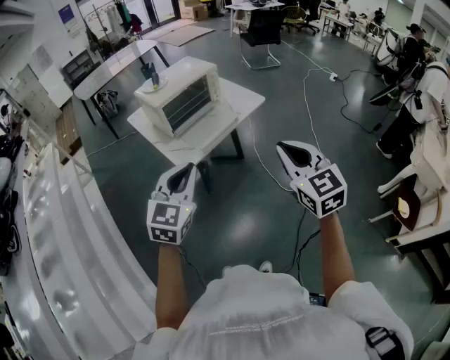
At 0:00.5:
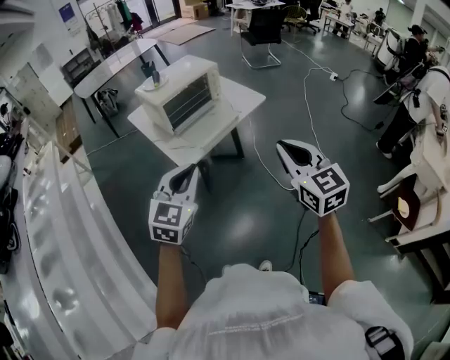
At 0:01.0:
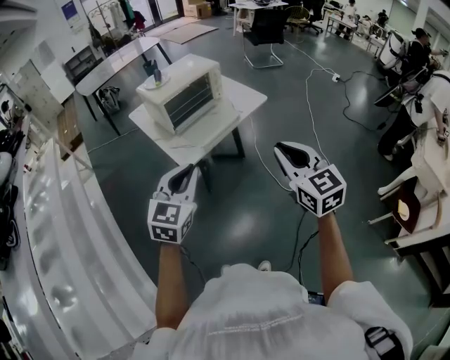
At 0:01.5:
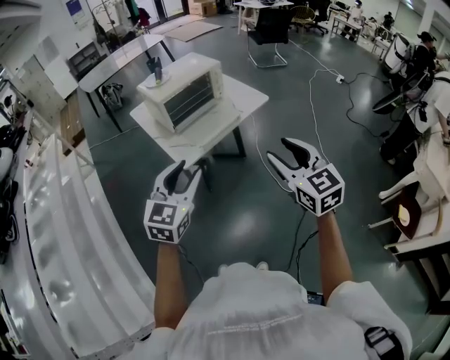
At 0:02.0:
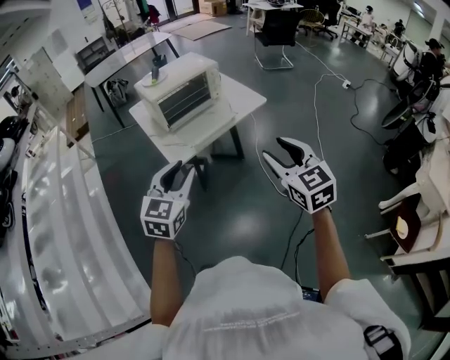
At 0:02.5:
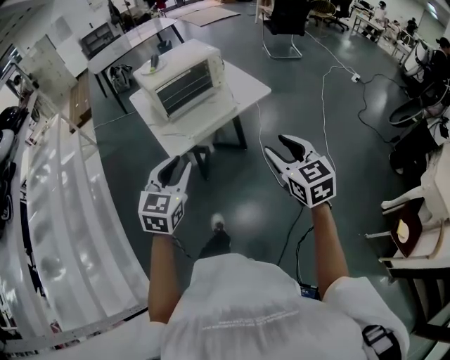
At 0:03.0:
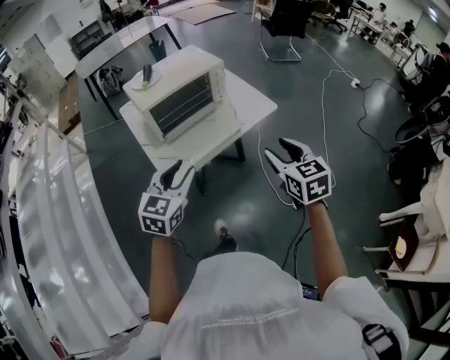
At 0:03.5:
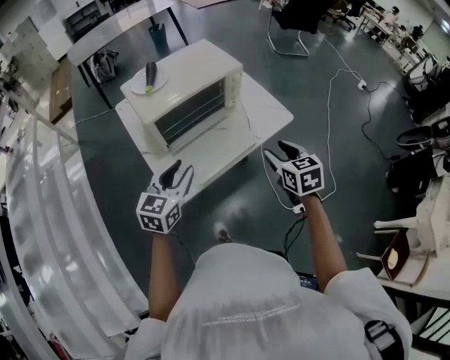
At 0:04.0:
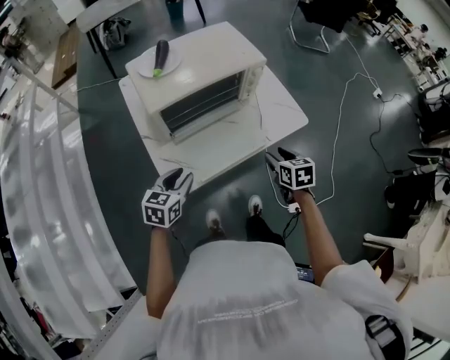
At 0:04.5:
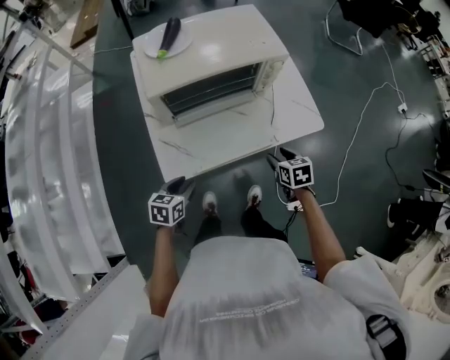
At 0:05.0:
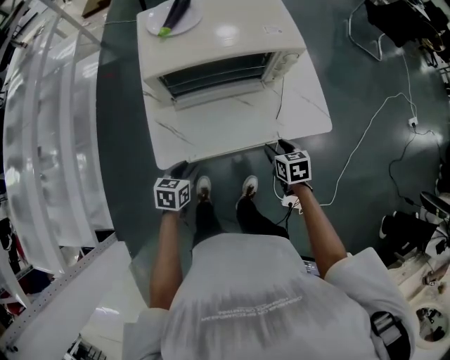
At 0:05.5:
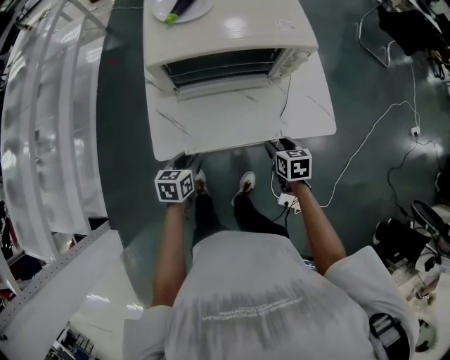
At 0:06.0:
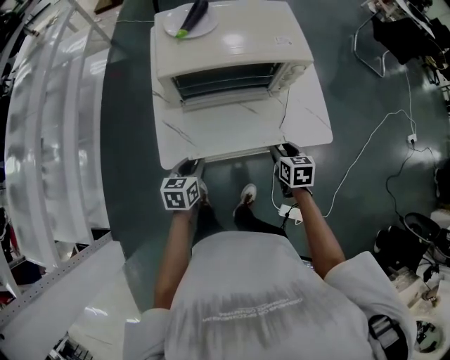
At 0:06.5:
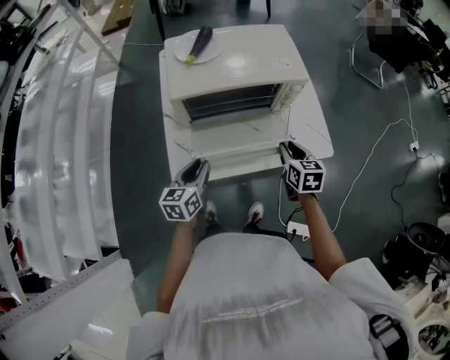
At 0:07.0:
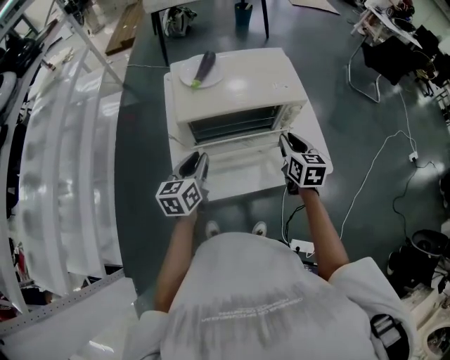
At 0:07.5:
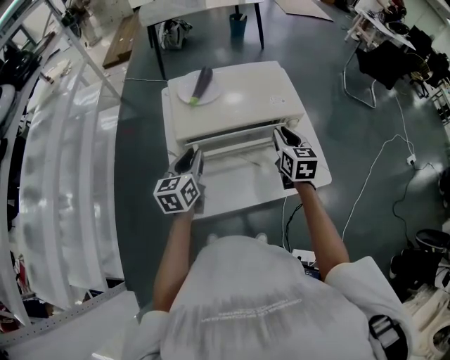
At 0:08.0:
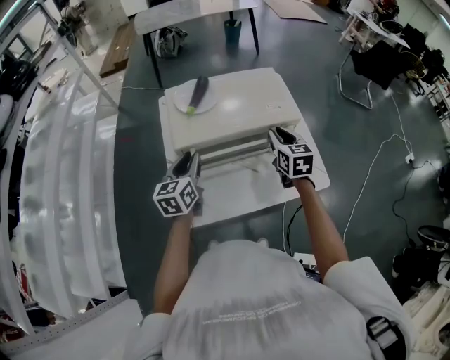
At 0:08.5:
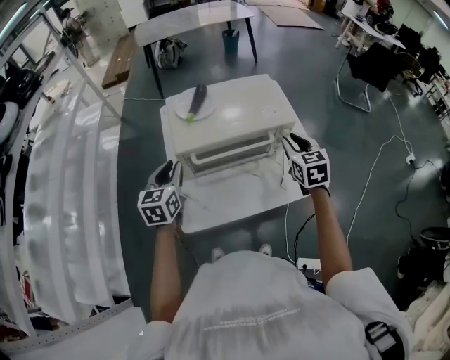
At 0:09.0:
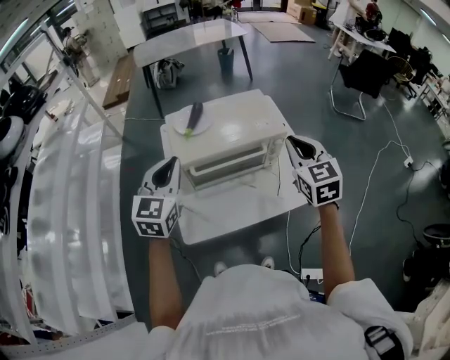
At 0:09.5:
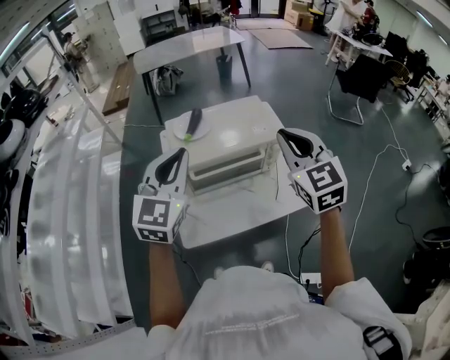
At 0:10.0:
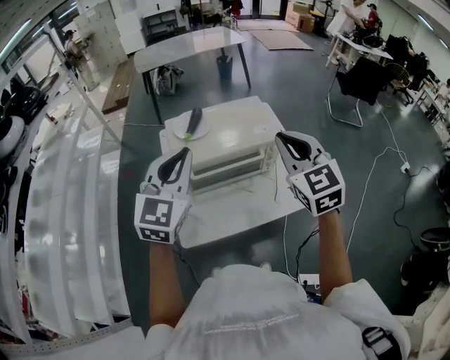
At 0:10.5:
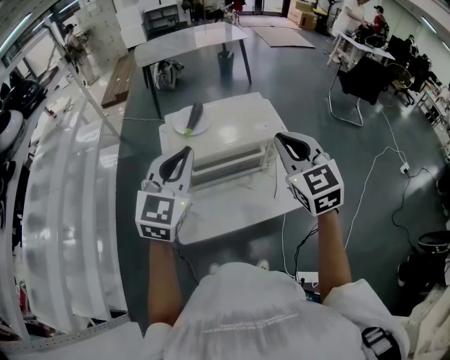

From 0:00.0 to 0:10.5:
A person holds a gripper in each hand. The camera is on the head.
From 0:00.0 to 0:02.0: The right gripper moves to the right, some 5 cm, and opens up. Meanwhile the left gripper moves roughly 5 cm, and opens up.
From 0:02.0 to 0:04.0: The two grippers go approximately 40 cm forward and downward. The left gripper rotates approximately 30 degrees. The right gripper tilts its fingers roughly 30 degrees downward.
From 0:04.0 to 0:06.5: The left gripper travels downward and back again, approximately 15 cm each way, and turns by approximately 30 degrees; the right gripper moves forward, some 10 cm, reaches roughly 10 cm downward, then returns, and closes.
From 0:06.5 to 0:08.5: The left gripper travels upward, forward and to the left by approximately 20 cm. The right gripper is displaced upward and forward by about 20 cm.
From 0:08.5 to 0:10.5: The left gripper heads upward and to the right, covering about 20 cm, and turns by roughly 30 degrees, while the right gripper moves upward and backward, about 20 cm, rotates about 20 degrees, and closes its fingers.

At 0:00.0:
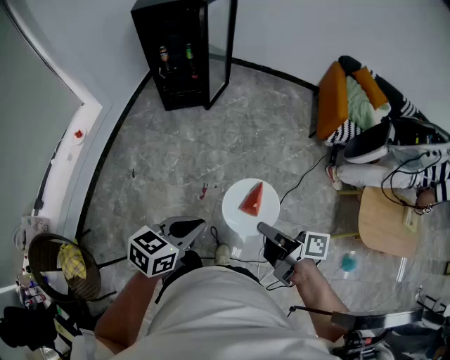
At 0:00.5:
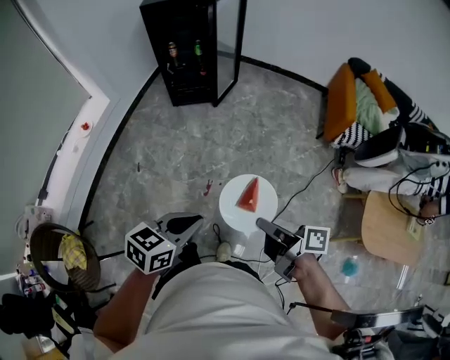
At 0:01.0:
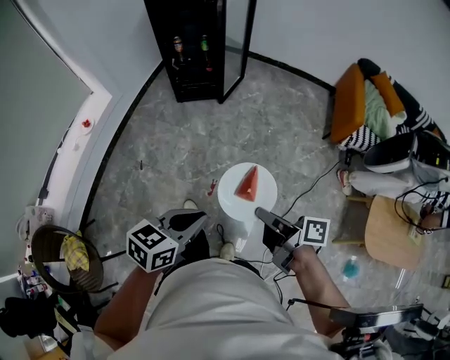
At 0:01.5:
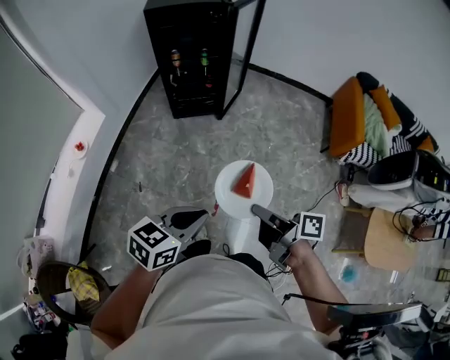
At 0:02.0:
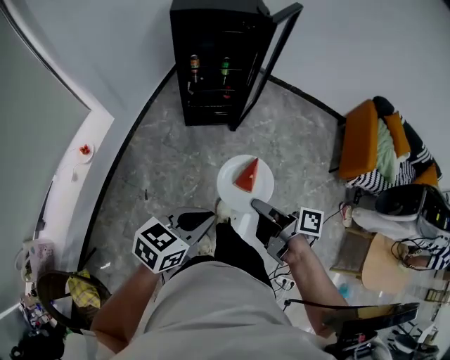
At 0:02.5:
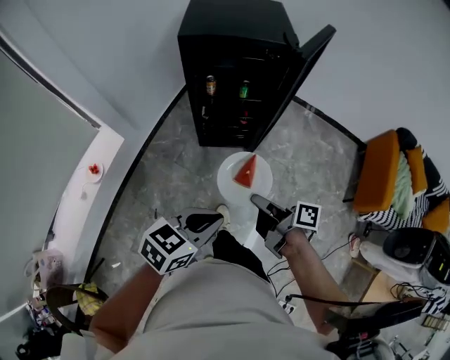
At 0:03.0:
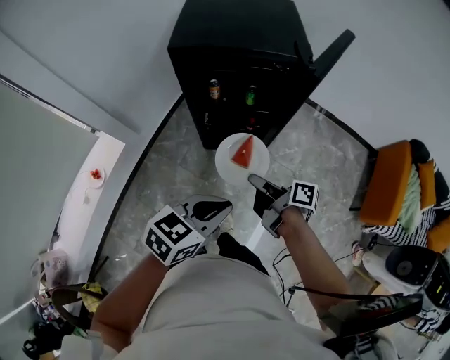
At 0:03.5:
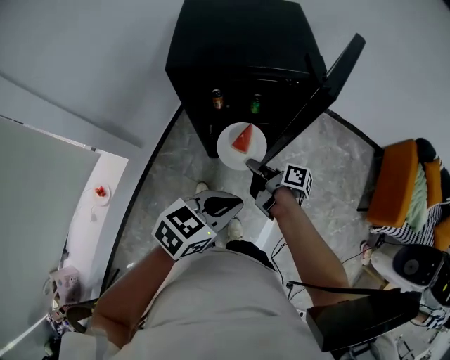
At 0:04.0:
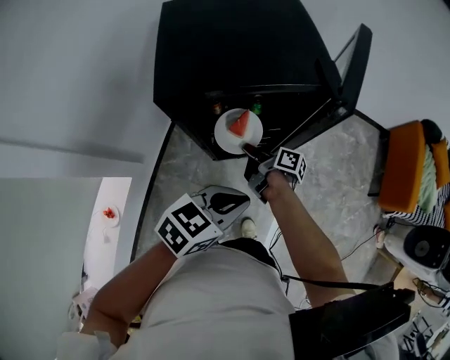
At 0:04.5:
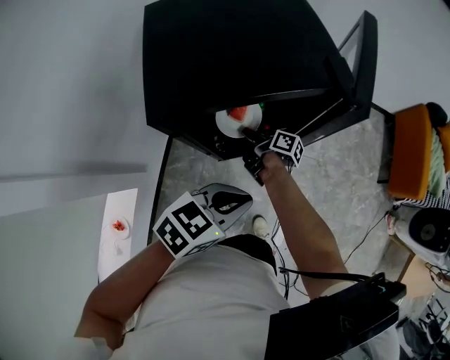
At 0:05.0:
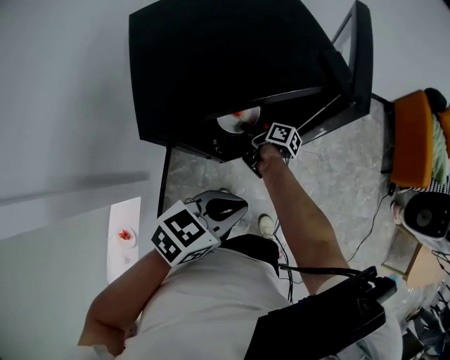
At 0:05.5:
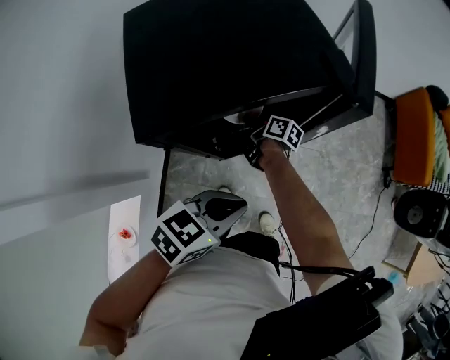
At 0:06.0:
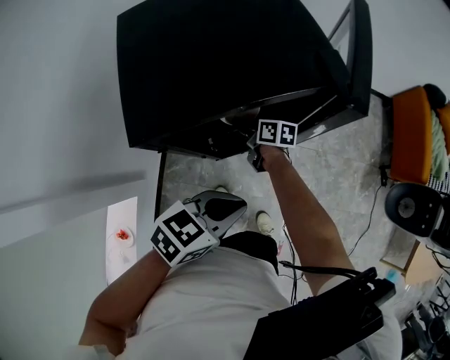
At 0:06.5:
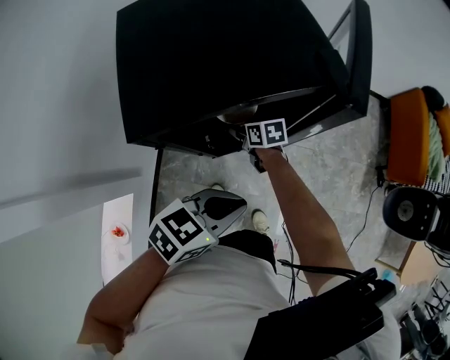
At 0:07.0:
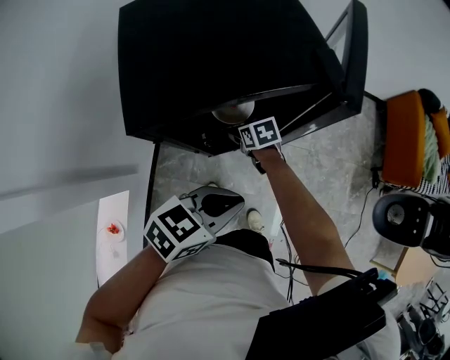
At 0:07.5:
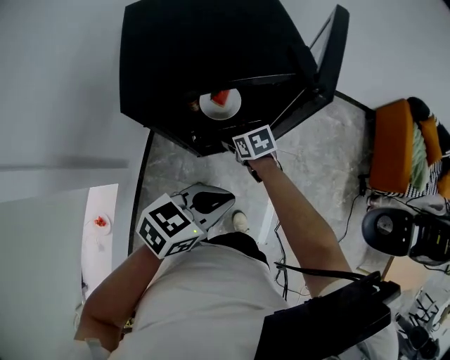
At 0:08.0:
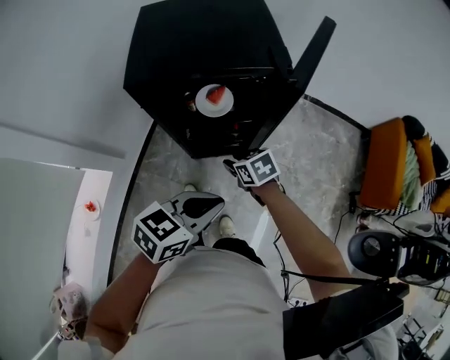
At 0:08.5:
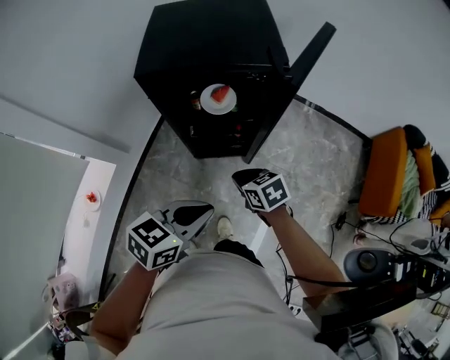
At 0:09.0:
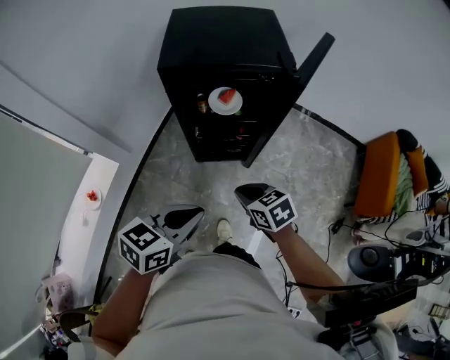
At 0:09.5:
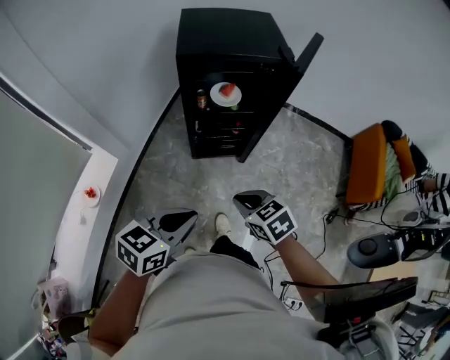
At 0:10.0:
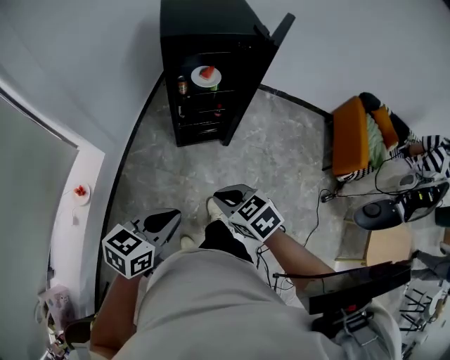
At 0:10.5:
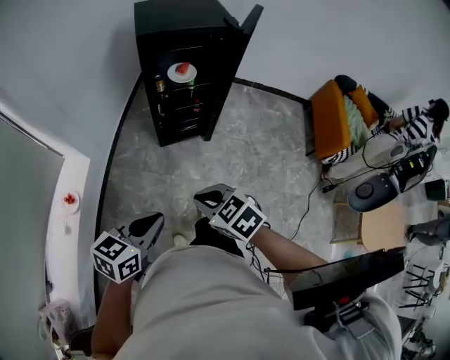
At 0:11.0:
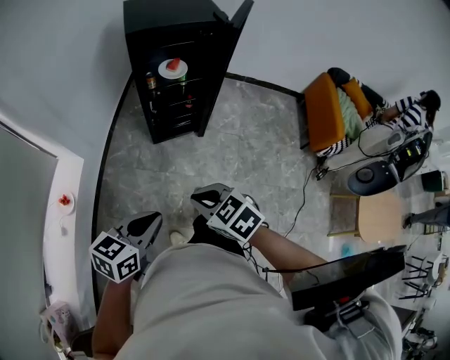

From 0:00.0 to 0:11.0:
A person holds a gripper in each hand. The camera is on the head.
From 0:00.0 to 0:02.0: The grippers both shift forward and to the left by about 40 cm.
From 0:02.0 to 0:03.5: The two grippers go about 40 cm forward.
From 0:03.5 to 0:05.5: The right gripper shifts some 25 cm forward, downward and to the left, and turns by approximately 20 degrees; the left gripper moves forward and to the left, approximately 15 cm.
From 0:05.5 to 0:07.5: The left gripper ends up some 5 cm from where it was, while the right gripper changes place by roughly 10 cm, twists some 60 degrees counterclockwise, seen from behind, and opens up.
From 0:07.5 to 0:09.0: The right gripper heads backward and upward, covering approximately 30 cm, and closes its fingers. Meanwhile the left gripper shifts approximately 15 cm backward, and turns by about 20 degrees.
From 0:09.0 to 0:11.0: The grippers both shift backward and to the left by approximately 30 cm.

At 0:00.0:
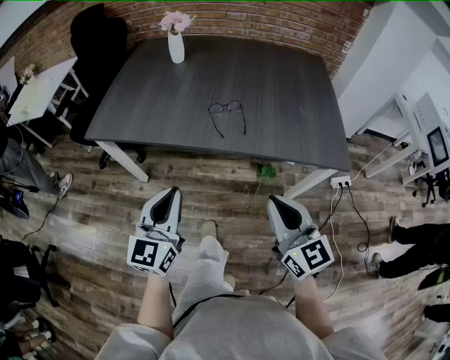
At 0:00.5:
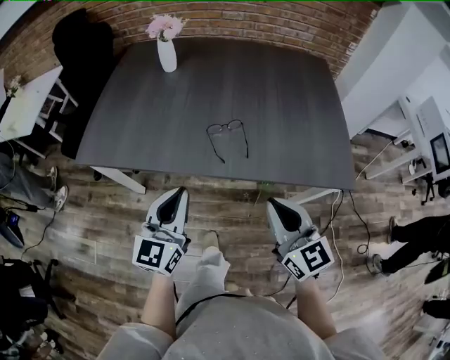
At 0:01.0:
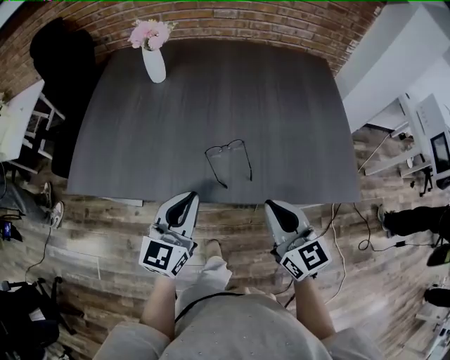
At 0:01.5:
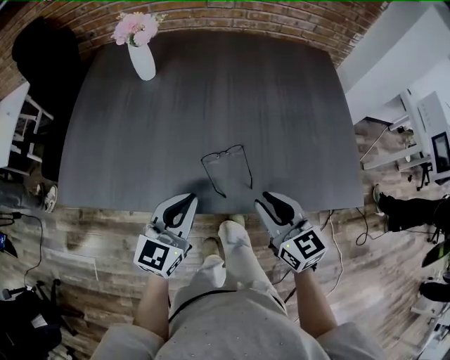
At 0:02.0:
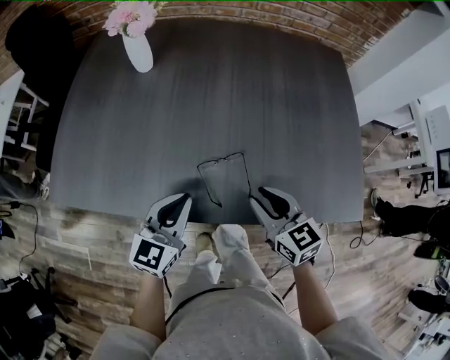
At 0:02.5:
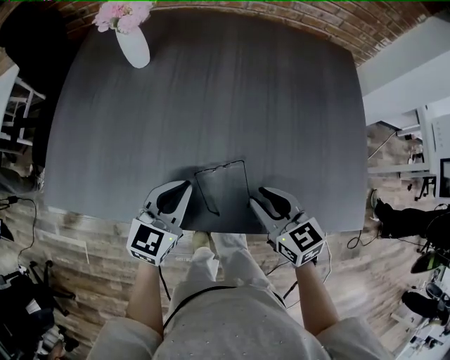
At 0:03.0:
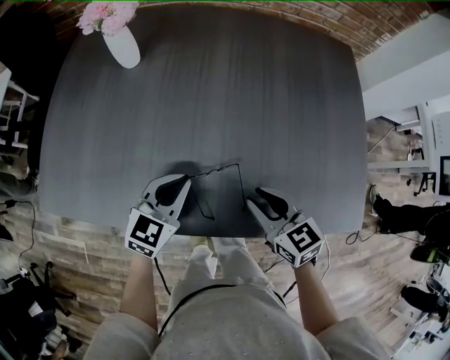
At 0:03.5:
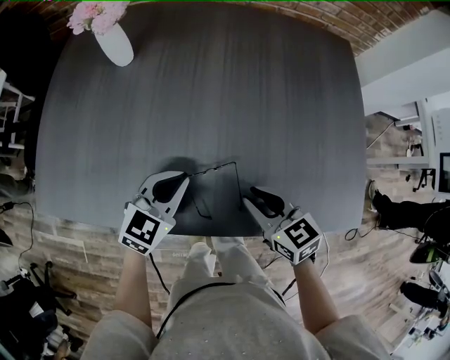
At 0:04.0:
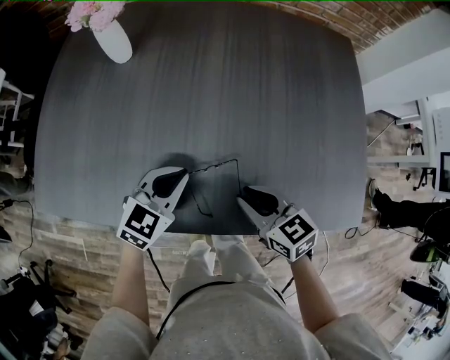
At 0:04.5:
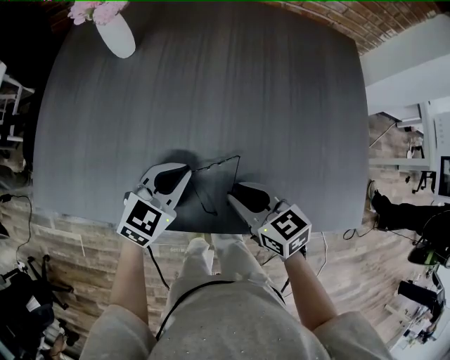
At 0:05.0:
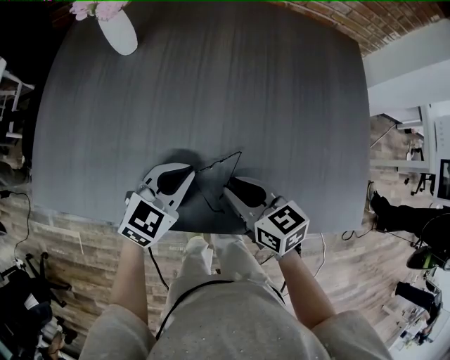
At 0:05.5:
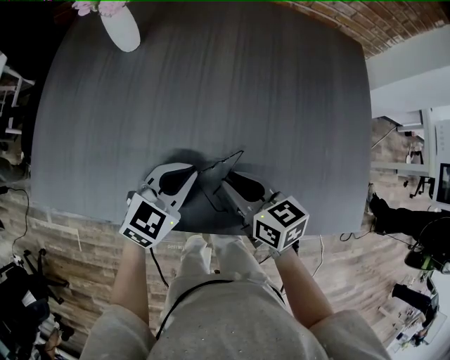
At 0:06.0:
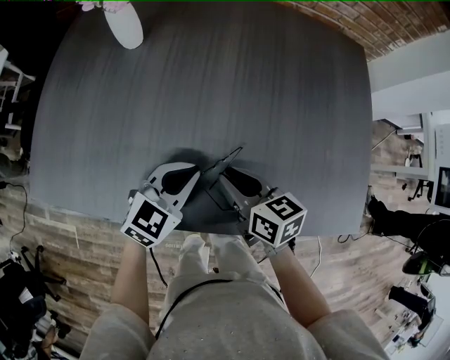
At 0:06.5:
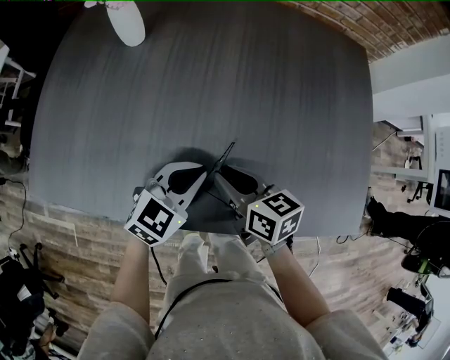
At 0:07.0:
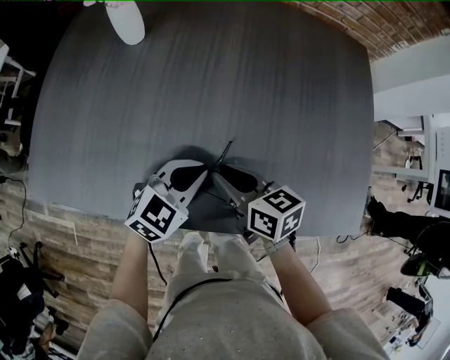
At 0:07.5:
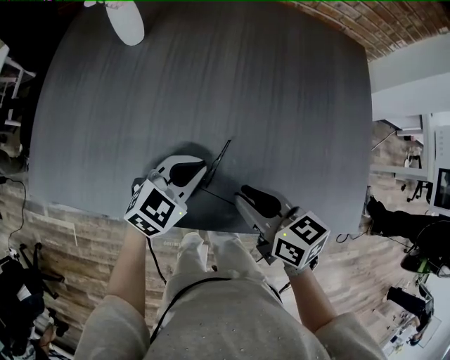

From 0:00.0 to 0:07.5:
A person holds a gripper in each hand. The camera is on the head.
From 0:00.0 to 0:02.0: Both grippers travel together forward, about 35 cm. The right gripper changes its angle by about 20 degrees, and opens; the left gripper turns by roughly 20 degrees.
From 0:02.0 to 0:04.0: The left gripper travels forward and downward by some 10 cm, and swivels approximately 20 degrees. The right gripper is displaced downward by about 5 cm.
From 0:04.0 to 0:05.5: The right gripper travels to the left by roughly 5 cm.
From 0:05.5 to 0:07.5: The right gripper moves some 5 cm.
